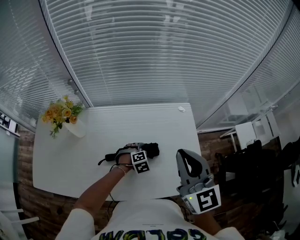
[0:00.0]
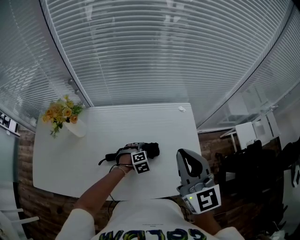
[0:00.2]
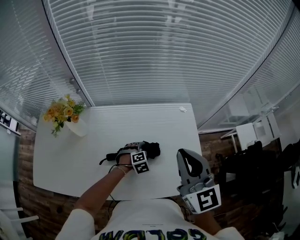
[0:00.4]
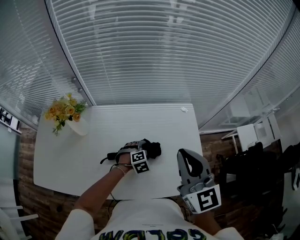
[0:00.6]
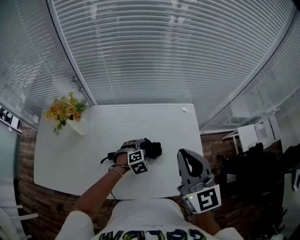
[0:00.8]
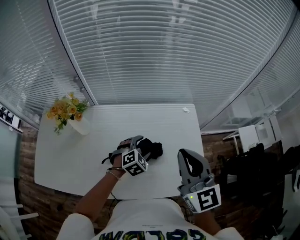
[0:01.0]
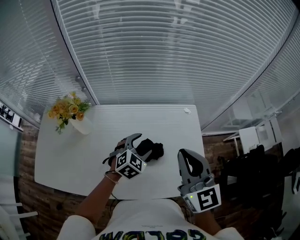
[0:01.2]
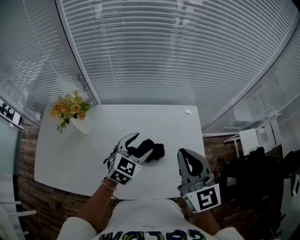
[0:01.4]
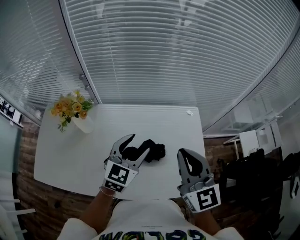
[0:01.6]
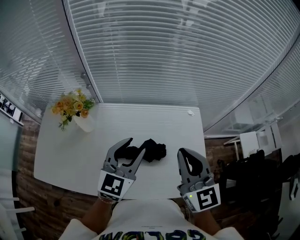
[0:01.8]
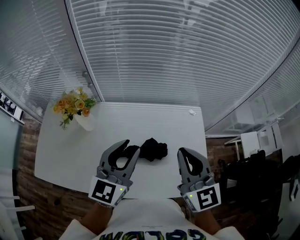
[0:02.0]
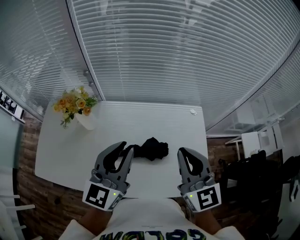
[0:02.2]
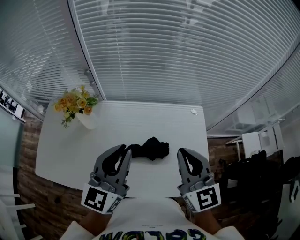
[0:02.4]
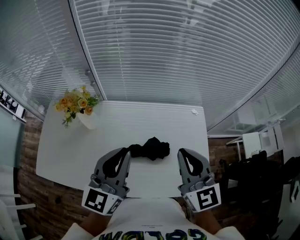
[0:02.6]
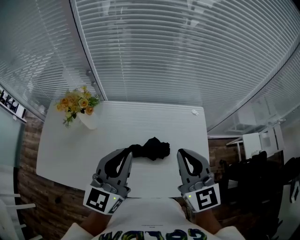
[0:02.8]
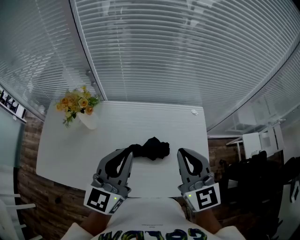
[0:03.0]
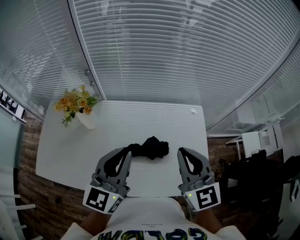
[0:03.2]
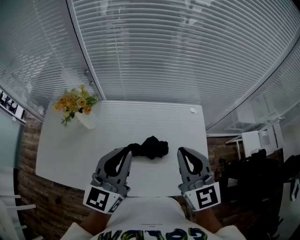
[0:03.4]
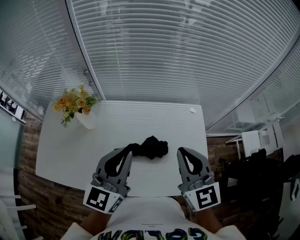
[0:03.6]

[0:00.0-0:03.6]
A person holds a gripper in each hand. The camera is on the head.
0:00.0 to 0:01.8: The left gripper shifts about 30 cm upward, and tilts its fingers approximately 50 degrees upward.
0:01.8 to 0:03.6: The left gripper goes some 5 cm upward, and closes.

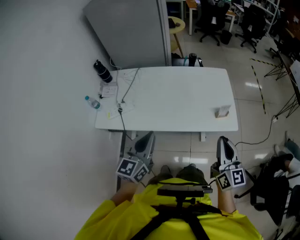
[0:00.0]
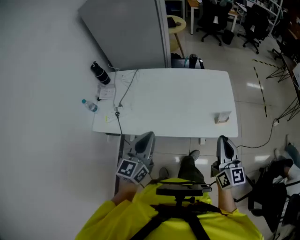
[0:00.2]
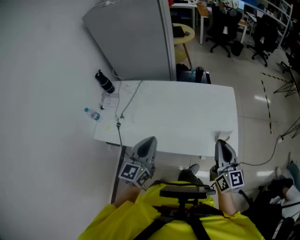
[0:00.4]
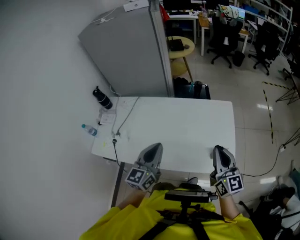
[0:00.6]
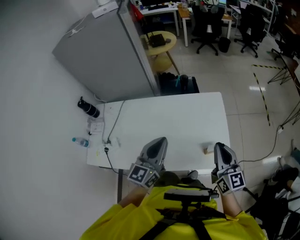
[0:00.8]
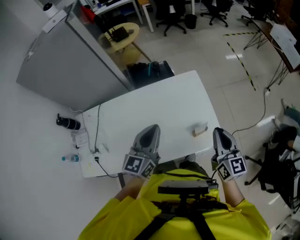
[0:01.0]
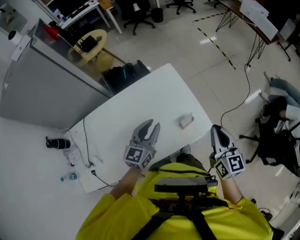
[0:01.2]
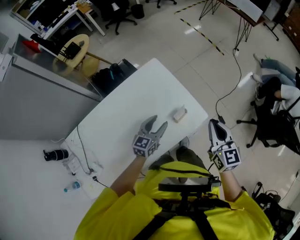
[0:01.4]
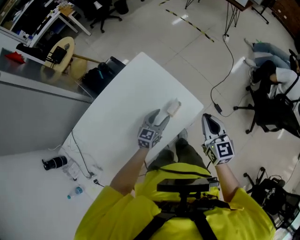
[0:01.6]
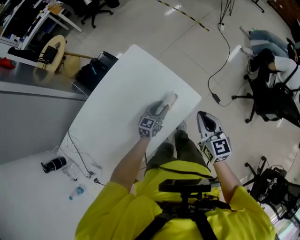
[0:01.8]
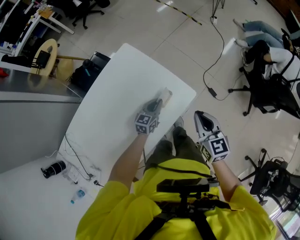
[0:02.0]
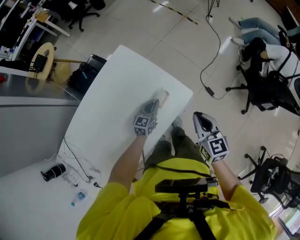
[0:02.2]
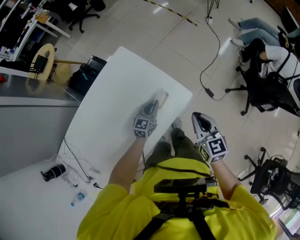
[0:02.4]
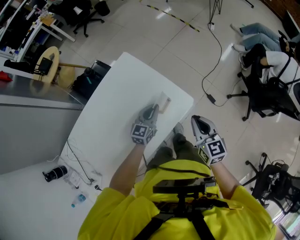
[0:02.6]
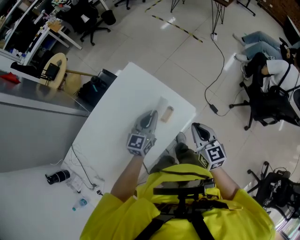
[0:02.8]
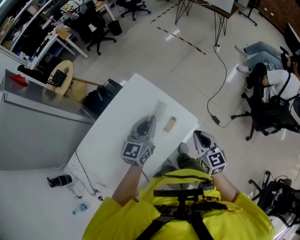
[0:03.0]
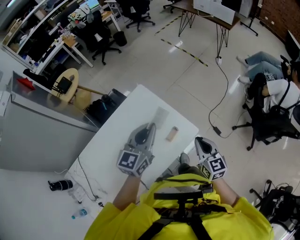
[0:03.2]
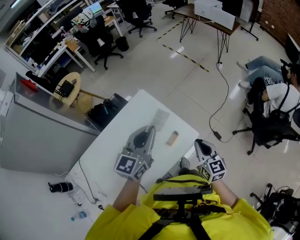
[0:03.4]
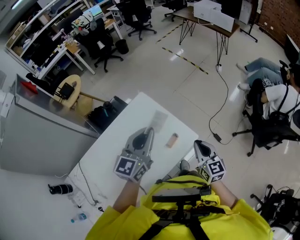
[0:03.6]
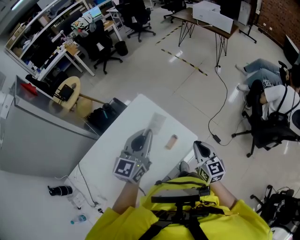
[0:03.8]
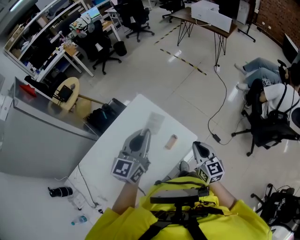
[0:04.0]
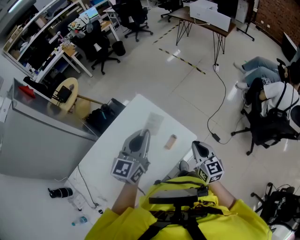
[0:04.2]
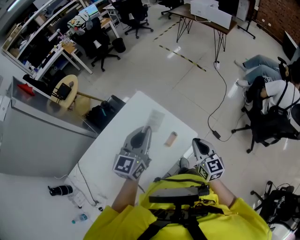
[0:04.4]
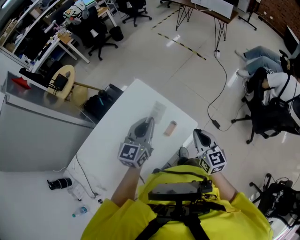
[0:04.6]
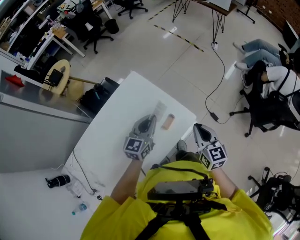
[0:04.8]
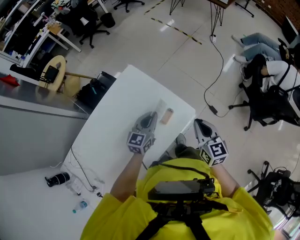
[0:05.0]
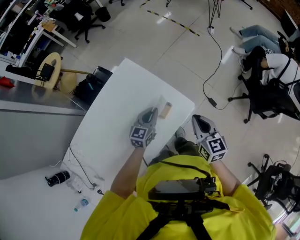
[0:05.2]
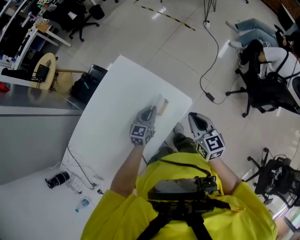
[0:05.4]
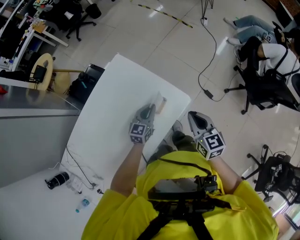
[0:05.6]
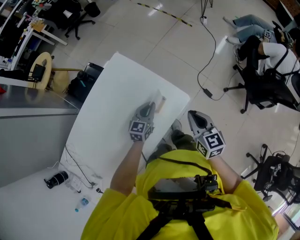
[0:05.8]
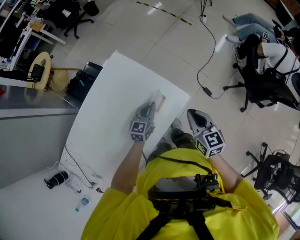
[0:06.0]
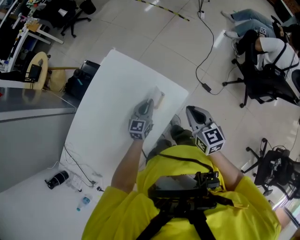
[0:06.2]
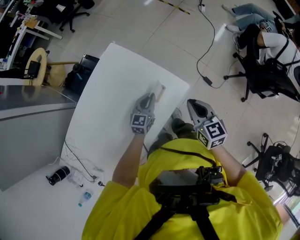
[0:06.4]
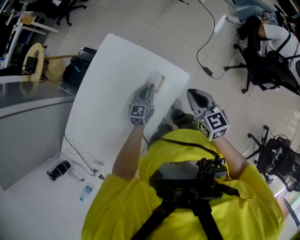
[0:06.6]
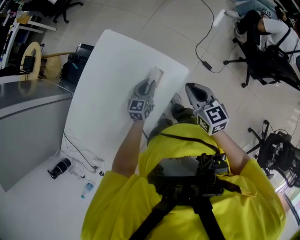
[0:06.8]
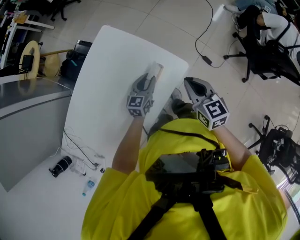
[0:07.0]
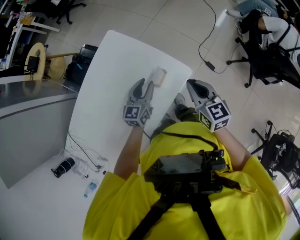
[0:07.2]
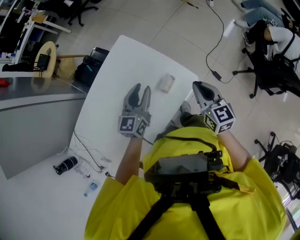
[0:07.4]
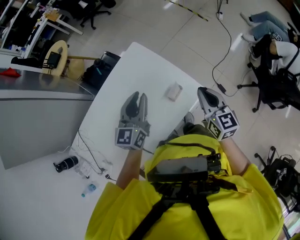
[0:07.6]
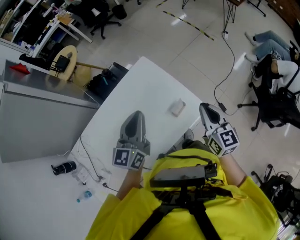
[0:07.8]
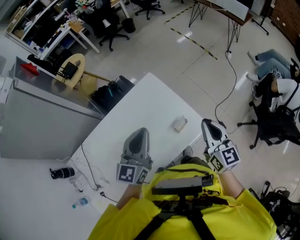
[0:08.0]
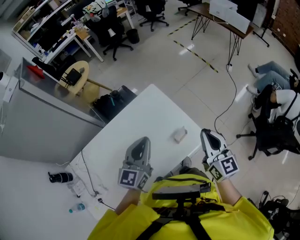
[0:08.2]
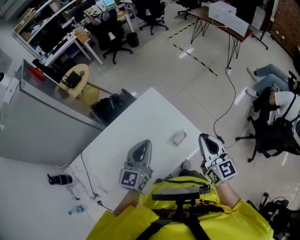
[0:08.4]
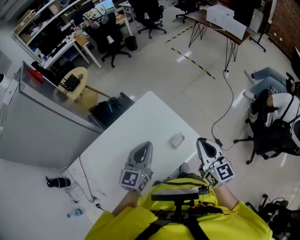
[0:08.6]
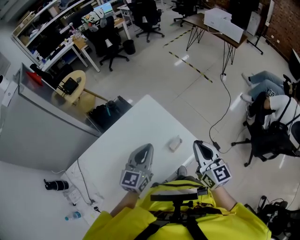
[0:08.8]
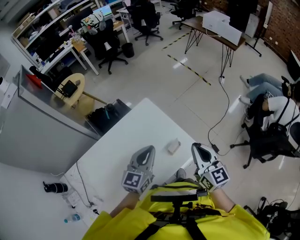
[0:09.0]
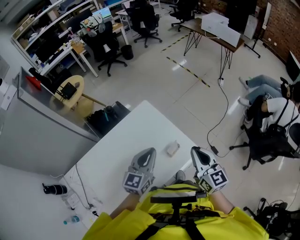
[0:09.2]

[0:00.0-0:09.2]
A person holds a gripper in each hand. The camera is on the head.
0:00.0 to 0:01.6: The left gripper moves some 60 cm, rotates about 60 degrees, and opens, while the right gripper ends up approximately 30 cm from where it was, and swivels some 40 degrees.
0:01.6 to 0:03.0: The left gripper travels upward by some 20 cm, and closes up.
0:03.0 to 0:04.6: The left gripper travels upward and back again, some 10 cm each way.
0:04.6 to 0:06.2: The left gripper heads downward, covering some 25 cm, while the right gripper shifts roughly 5 cm downward.
0:06.2 to 0:07.6: The right gripper heads upward, covering about 5 cm; the left gripper is displaced upward and to the left by roughly 25 cm, and opens up.
0:07.6 to 0:09.2: The left gripper closes its fingers, while the right gripper moves upward, some 10 cm.

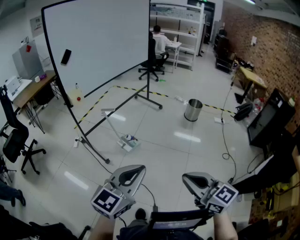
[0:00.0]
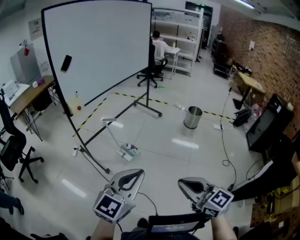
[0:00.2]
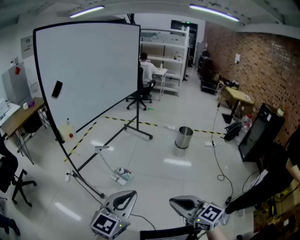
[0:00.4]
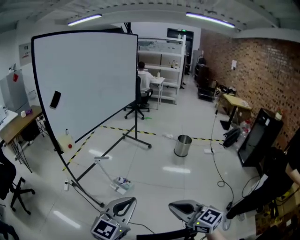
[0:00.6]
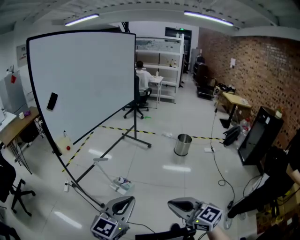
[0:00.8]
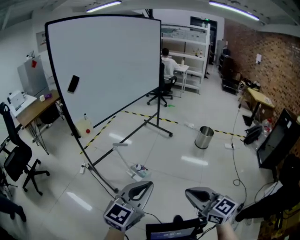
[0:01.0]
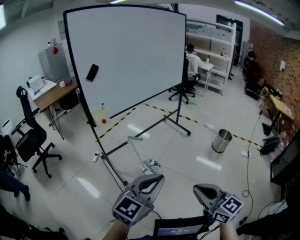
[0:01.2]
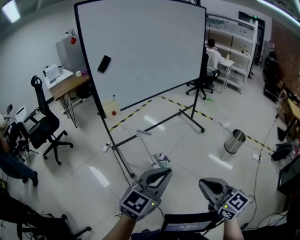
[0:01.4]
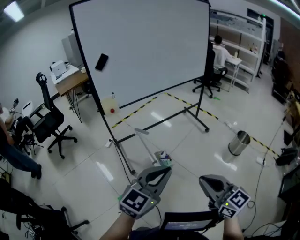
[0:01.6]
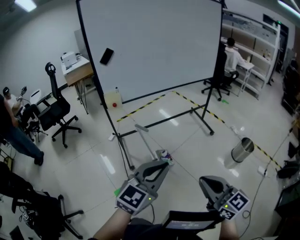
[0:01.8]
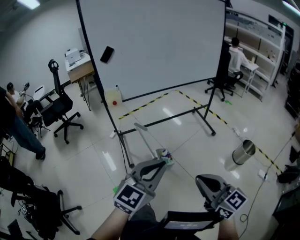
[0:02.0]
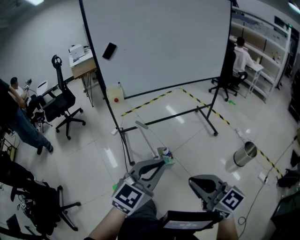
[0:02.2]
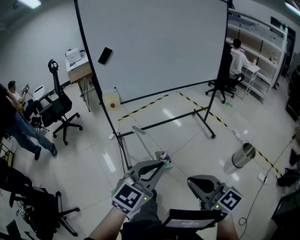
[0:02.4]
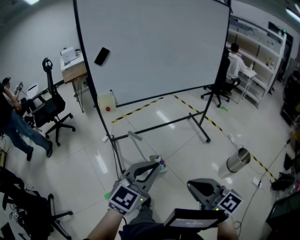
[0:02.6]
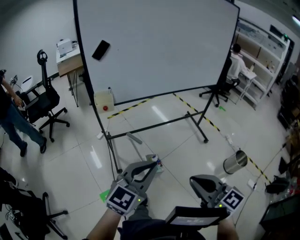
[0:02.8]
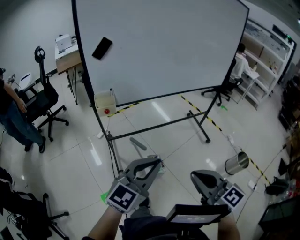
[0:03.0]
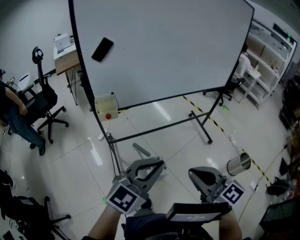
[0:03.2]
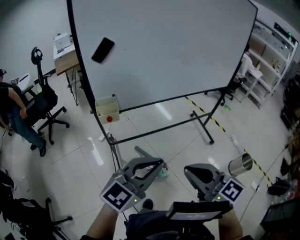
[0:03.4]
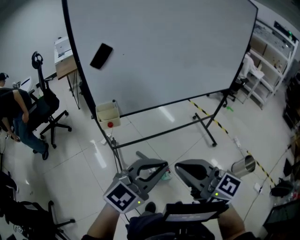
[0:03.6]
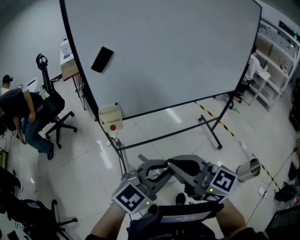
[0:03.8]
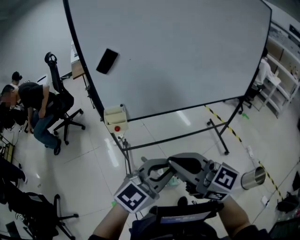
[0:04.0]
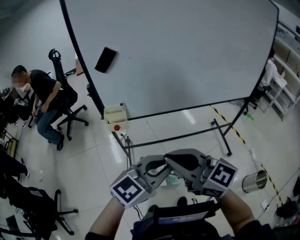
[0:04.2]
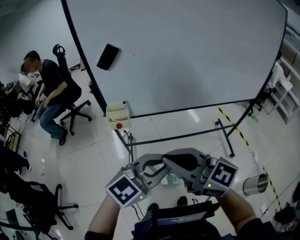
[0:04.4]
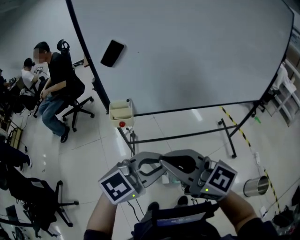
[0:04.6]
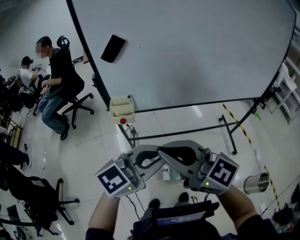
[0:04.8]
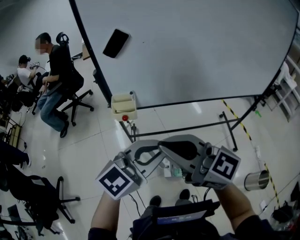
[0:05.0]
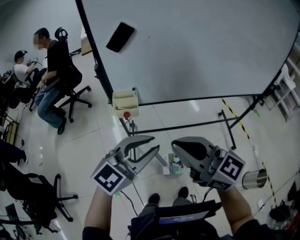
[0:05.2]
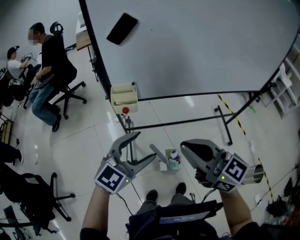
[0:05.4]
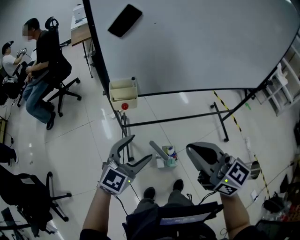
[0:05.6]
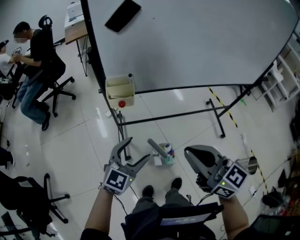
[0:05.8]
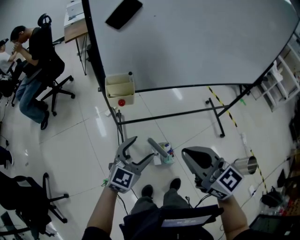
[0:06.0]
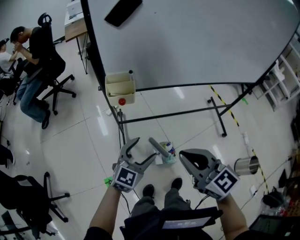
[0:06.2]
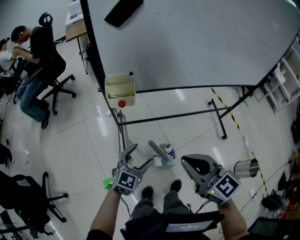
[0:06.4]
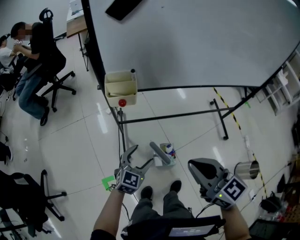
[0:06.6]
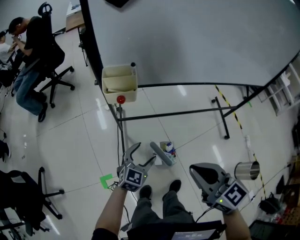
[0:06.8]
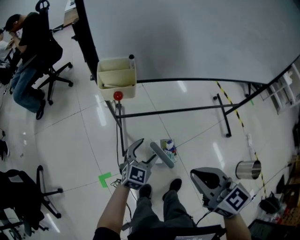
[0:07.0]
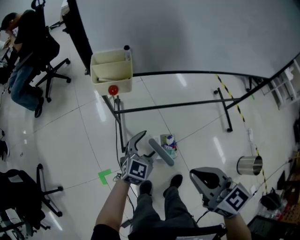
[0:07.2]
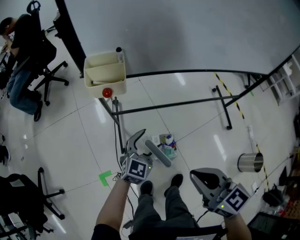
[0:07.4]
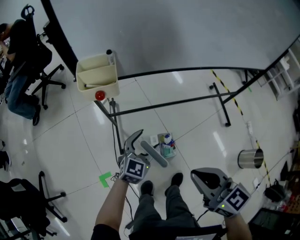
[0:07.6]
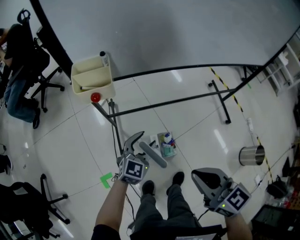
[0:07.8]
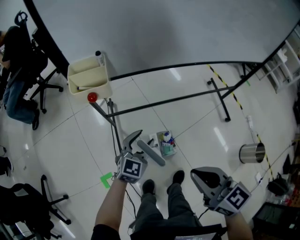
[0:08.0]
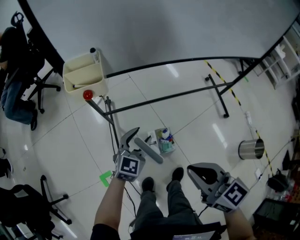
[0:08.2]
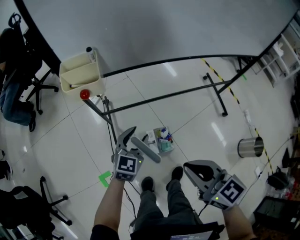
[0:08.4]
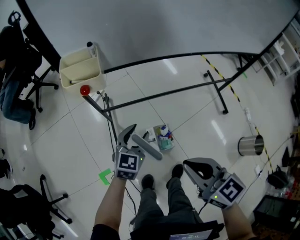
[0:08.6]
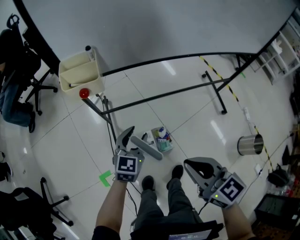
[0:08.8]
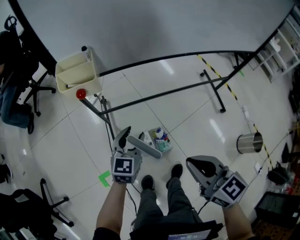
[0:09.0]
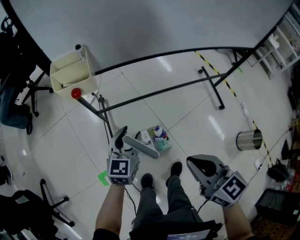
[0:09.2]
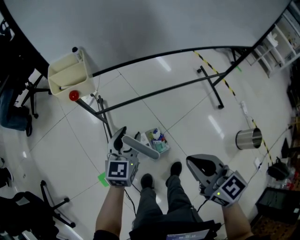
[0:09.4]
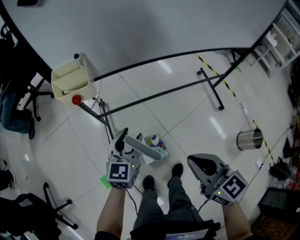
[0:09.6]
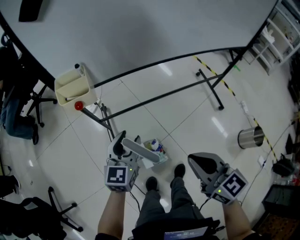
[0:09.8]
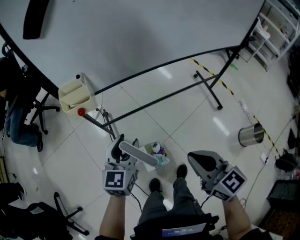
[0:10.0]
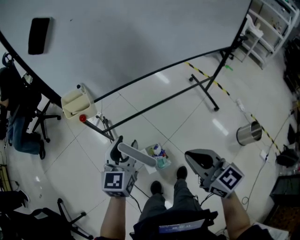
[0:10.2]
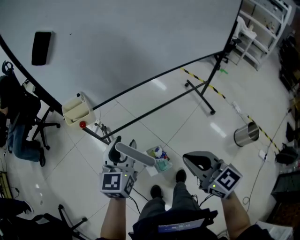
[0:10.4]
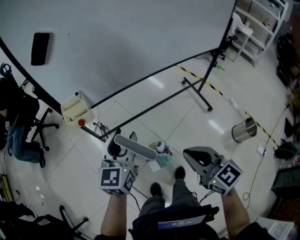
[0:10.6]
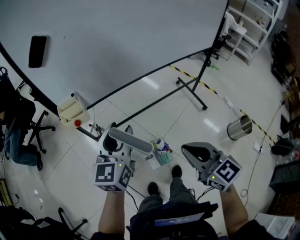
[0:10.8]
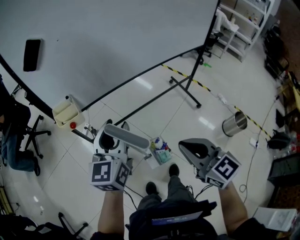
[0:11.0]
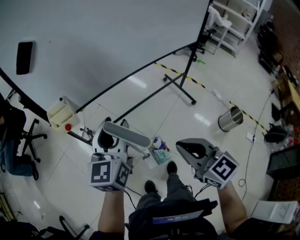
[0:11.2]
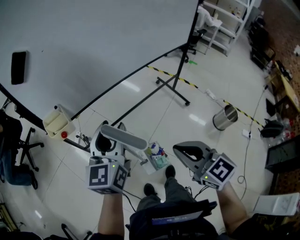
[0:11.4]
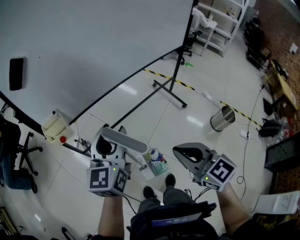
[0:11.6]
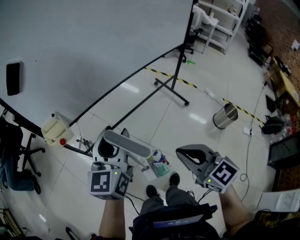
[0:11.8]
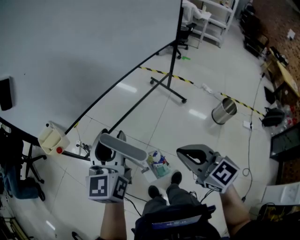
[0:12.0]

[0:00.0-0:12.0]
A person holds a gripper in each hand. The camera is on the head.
0:00.0 to 0:01.6: Both grippers travel together forward, some 30 cm. The left gripper changes its angle by roughly 20 degrees.
0:01.6 to 0:03.0: Both grippers move forward, about 25 cm.
0:03.0 to 0:04.4: The right gripper heads forward and to the left, covering approximately 20 cm, and turns by about 30 degrees; the left gripper shifts roughly 15 cm forward.
0:04.4 to 0:06.0: The left gripper shifts approximately 20 cm downward, rotates some 20 degrees, and opens up. The right gripper travels downward by approximately 10 cm, and rotates roughly 20 degrees.
0:06.0 to 0:07.6: The left gripper heads downward and forward, covering some 20 cm; the right gripper moves downward and to the right, roughly 15 cm.
0:07.6 to 0:09.0: The left gripper closes its fingers.
0:09.0 to 0:10.4: The left gripper is displaced upward by roughly 20 cm. The right gripper heads upward, covering about 10 cm.
0:10.4 to 0:12.0: The right gripper goes approximately 5 cm to the right, while the left gripper is displaced upward and to the right by some 15 cm.
